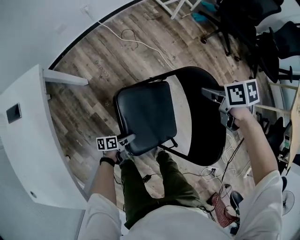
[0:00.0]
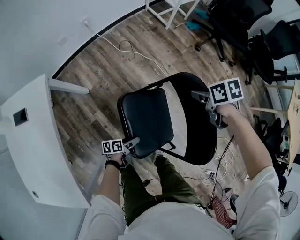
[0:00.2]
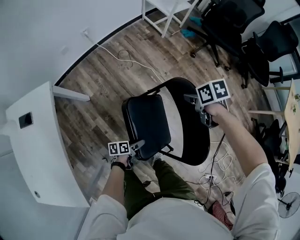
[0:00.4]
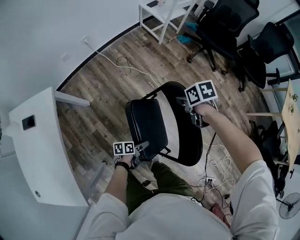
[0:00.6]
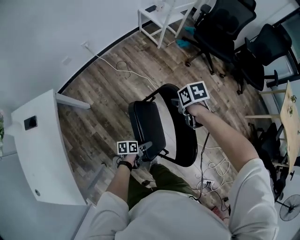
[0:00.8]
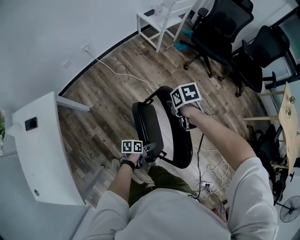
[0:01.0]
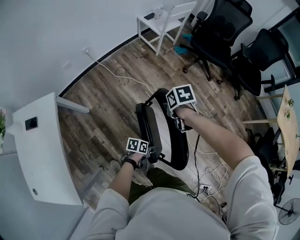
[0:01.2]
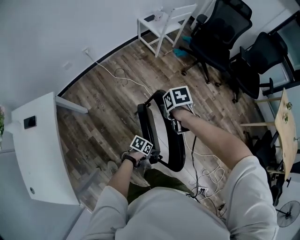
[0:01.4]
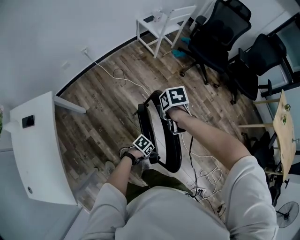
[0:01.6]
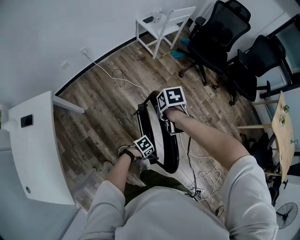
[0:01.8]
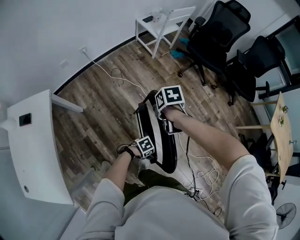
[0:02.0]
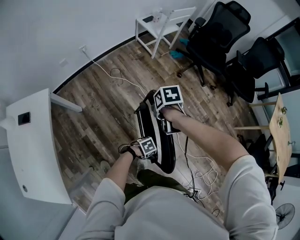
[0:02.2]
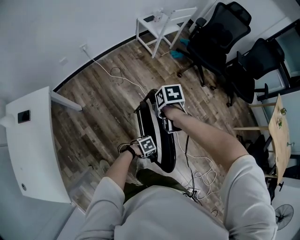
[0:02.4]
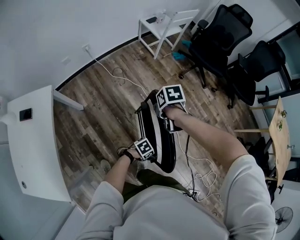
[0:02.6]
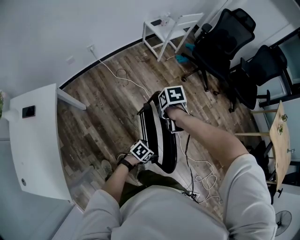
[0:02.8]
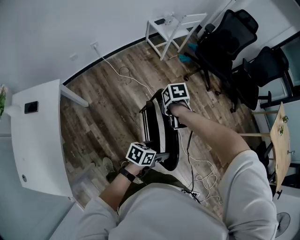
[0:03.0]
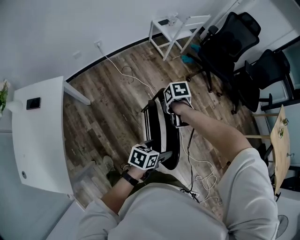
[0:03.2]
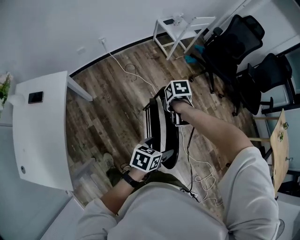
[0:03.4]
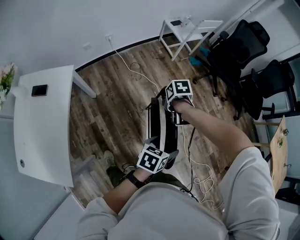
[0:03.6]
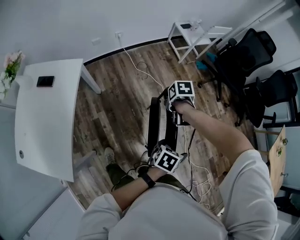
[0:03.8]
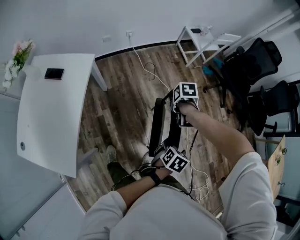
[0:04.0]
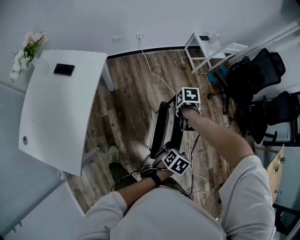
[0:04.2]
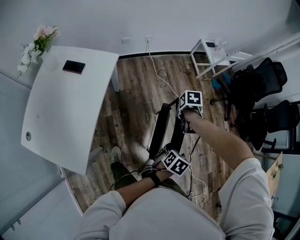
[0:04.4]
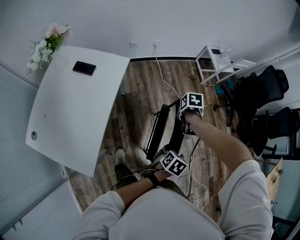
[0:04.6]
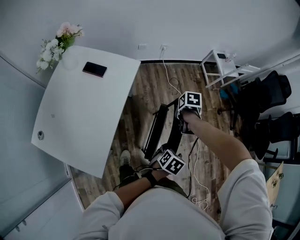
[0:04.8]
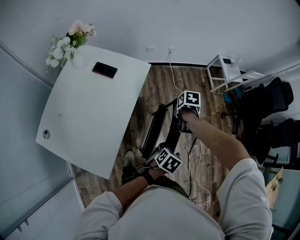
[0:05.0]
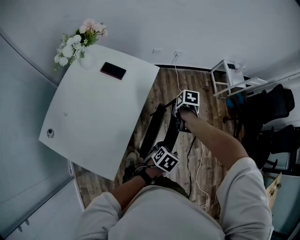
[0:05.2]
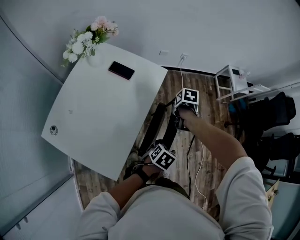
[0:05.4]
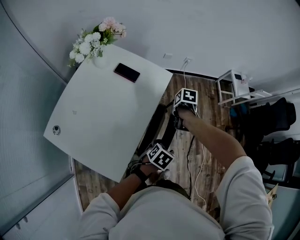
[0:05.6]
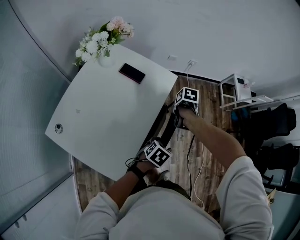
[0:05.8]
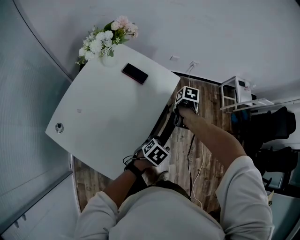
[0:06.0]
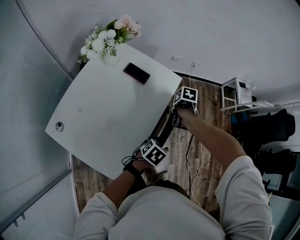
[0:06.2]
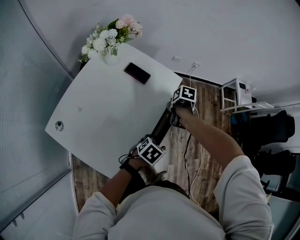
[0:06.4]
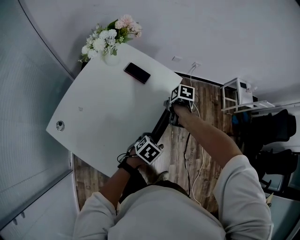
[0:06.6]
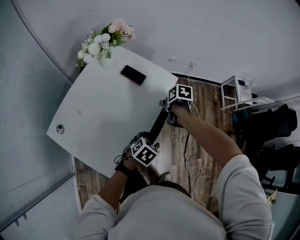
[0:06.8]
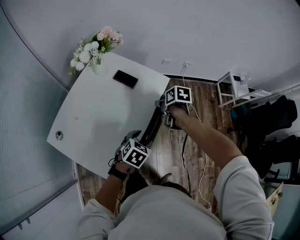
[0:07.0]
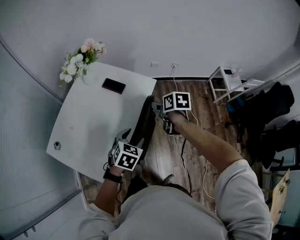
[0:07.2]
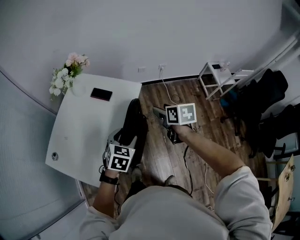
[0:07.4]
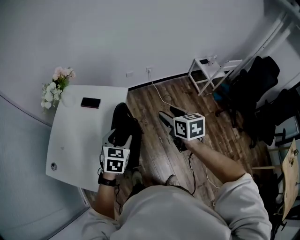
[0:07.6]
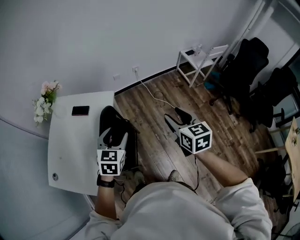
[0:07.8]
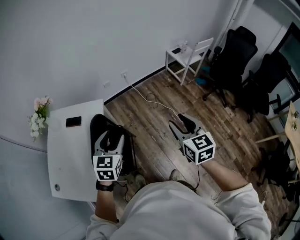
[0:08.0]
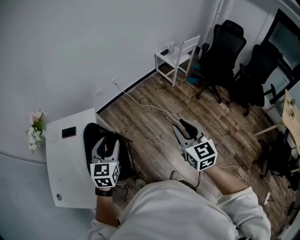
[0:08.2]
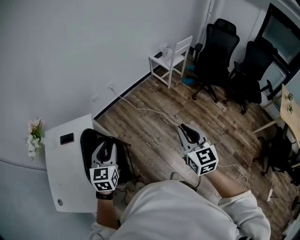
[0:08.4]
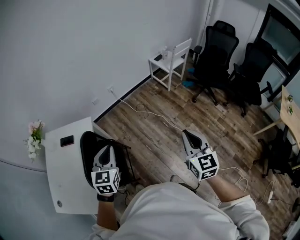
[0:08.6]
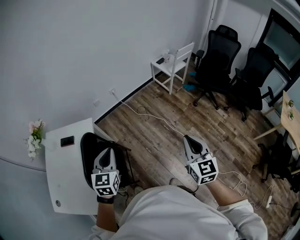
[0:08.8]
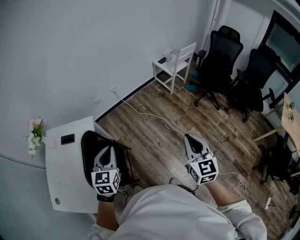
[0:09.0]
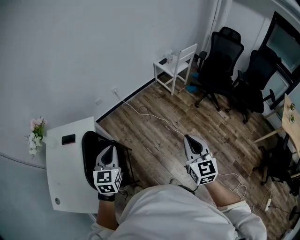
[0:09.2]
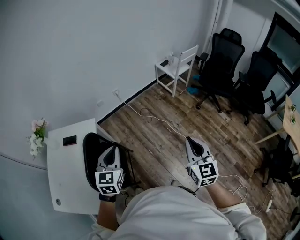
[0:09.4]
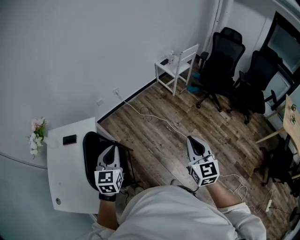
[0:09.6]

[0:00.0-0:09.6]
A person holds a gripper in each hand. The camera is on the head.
0:00.0 to 0:01.6: The left gripper changes place by about 35 cm, and swivels approximately 60 degrees, while the right gripper is displaced upward by some 10 cm.
0:01.6 to 0:03.2: The left gripper goes about 20 cm upward, and swivels roughly 40 degrees.
0:03.2 to 0:04.8: The left gripper moves about 30 cm, turns by about 30 degrees, and closes up. The right gripper changes place by approximately 35 cm.
0:04.8 to 0:06.4: The left gripper shifts by roughly 30 cm. The right gripper changes place by approximately 30 cm.
0:06.4 to 0:08.0: The right gripper shifts by approximately 60 cm, and tilts its fingers roughly 60 degrees upward. The left gripper travels upward by approximately 25 cm, and swivels some 40 degrees.
0:08.0 to 0:09.6: The right gripper goes approximately 15 cm to the right and backward, and closes. Meanwhile the left gripper shifts approximately 10 cm to the right, and closes its fingers.

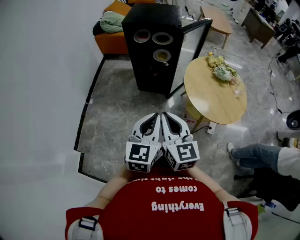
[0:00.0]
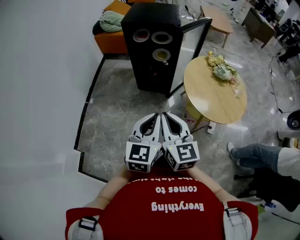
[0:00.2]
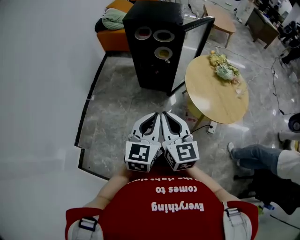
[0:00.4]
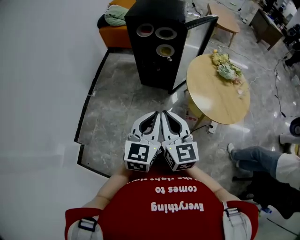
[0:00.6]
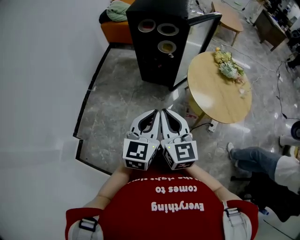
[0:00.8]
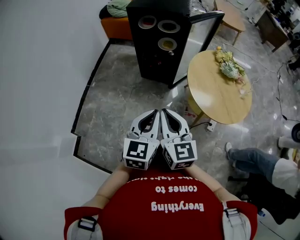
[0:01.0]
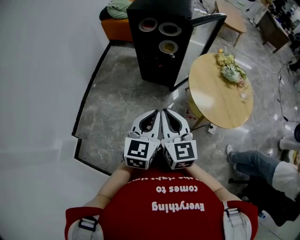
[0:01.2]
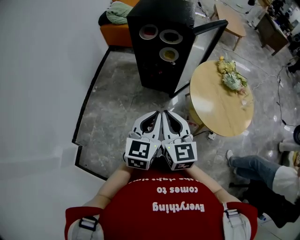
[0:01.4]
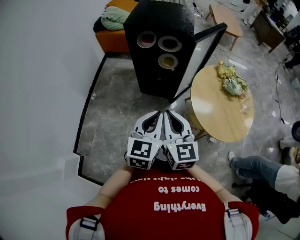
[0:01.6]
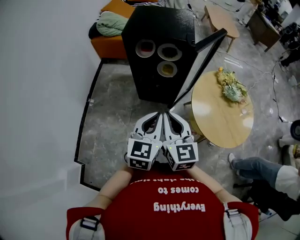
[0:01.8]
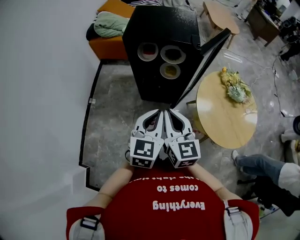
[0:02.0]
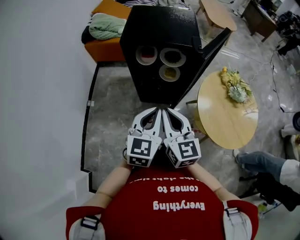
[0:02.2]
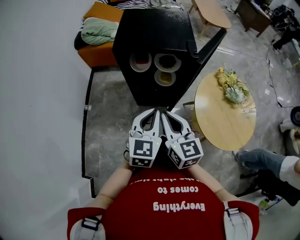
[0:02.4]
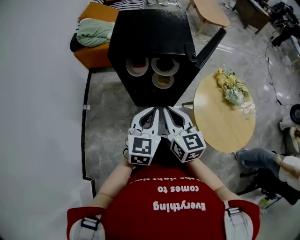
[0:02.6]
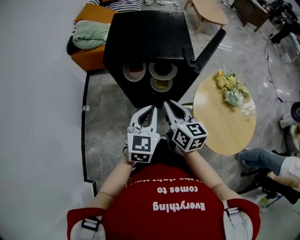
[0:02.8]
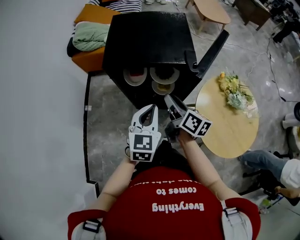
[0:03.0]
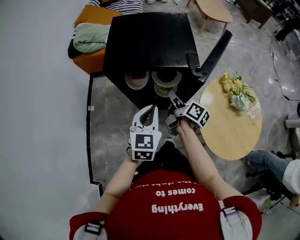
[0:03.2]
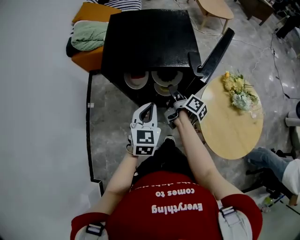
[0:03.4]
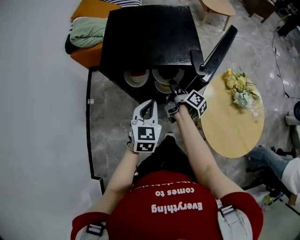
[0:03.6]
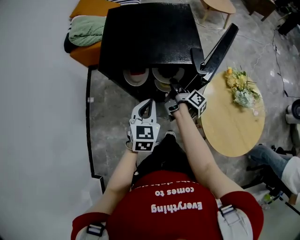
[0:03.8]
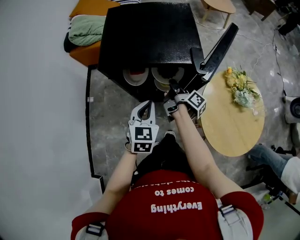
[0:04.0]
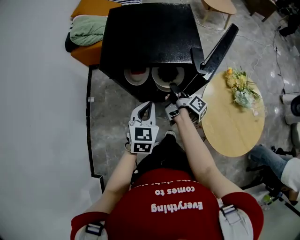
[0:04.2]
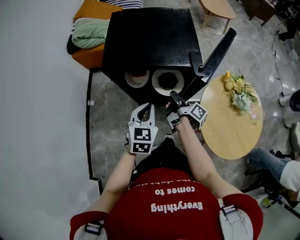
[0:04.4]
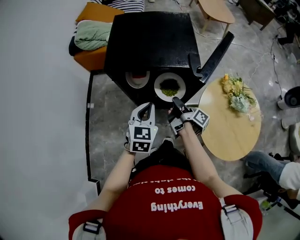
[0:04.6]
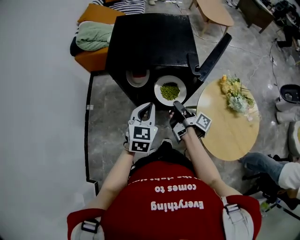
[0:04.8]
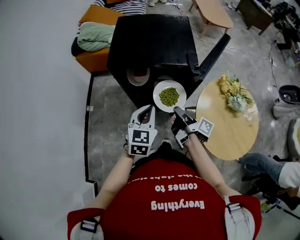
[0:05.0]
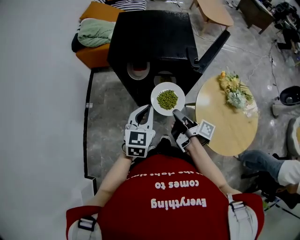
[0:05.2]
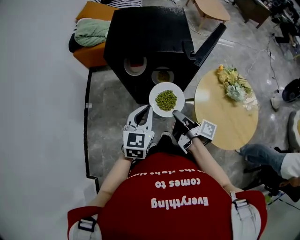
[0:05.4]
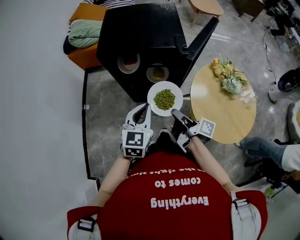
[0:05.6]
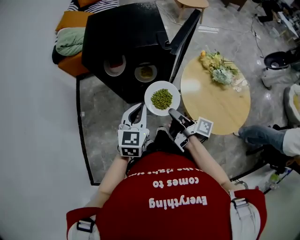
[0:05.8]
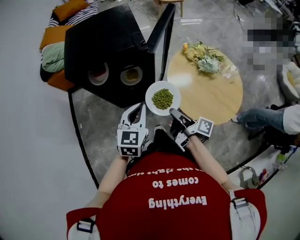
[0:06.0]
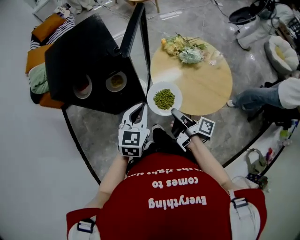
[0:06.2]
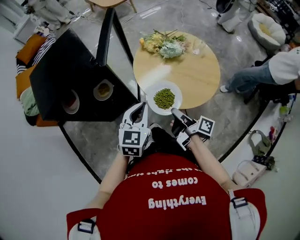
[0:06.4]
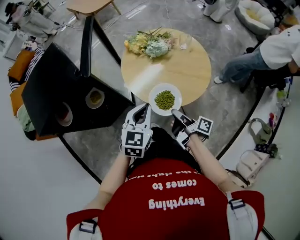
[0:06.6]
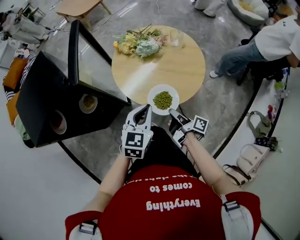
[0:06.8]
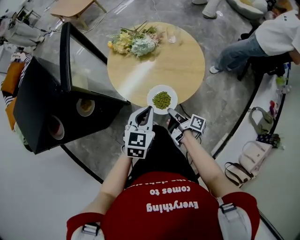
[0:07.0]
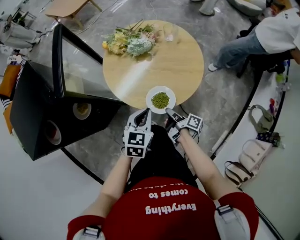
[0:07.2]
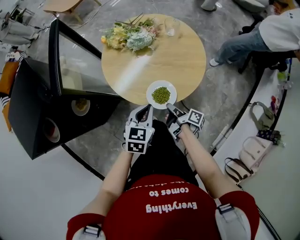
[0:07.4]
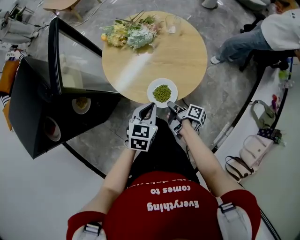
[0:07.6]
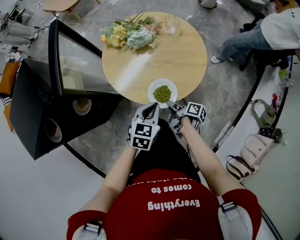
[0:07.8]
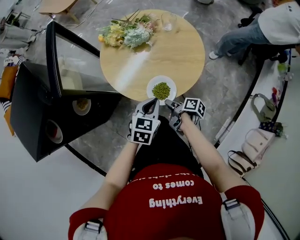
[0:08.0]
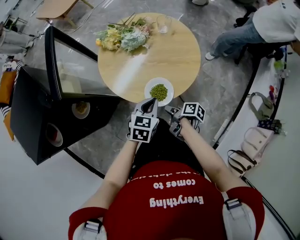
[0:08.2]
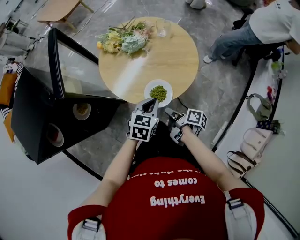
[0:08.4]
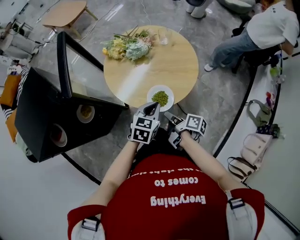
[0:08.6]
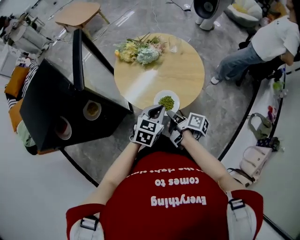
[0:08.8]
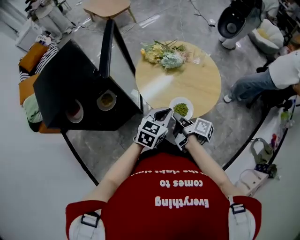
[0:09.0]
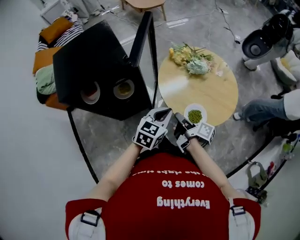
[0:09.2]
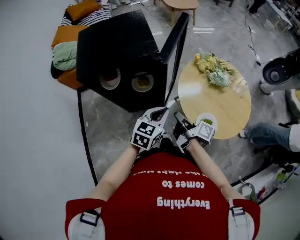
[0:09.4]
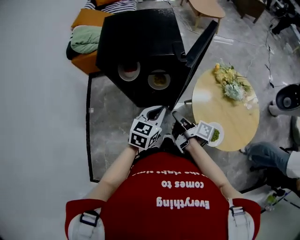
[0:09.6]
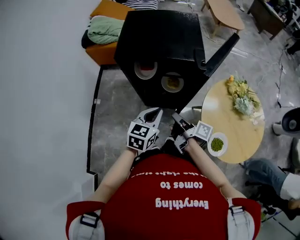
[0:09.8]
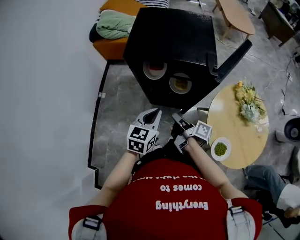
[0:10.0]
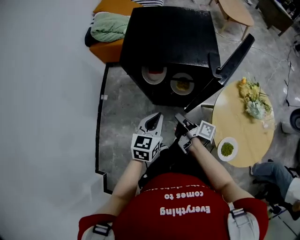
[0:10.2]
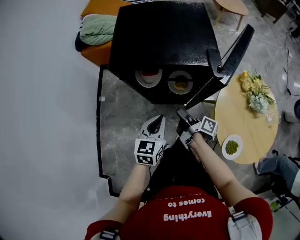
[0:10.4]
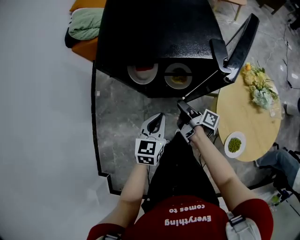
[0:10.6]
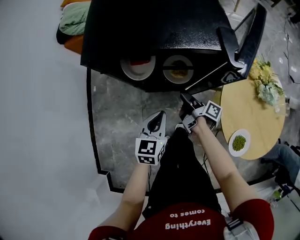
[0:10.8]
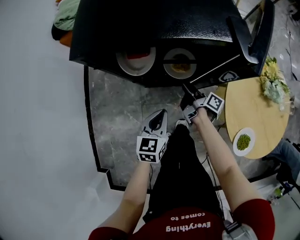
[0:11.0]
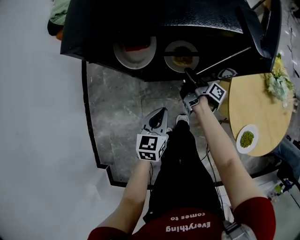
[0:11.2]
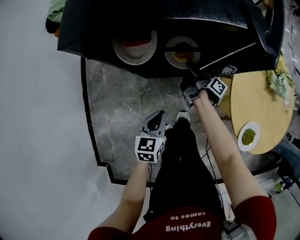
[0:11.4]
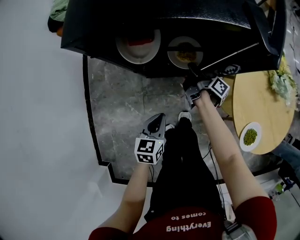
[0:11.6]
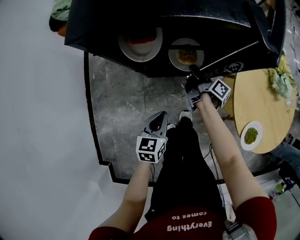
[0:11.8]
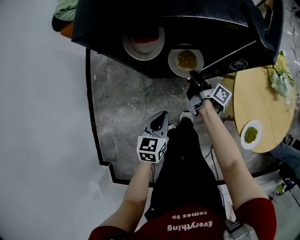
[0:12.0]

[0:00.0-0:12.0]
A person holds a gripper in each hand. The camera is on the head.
0:00.0 to 0:01.6: The left gripper ends up approximately 15 cm from where it was.
0:01.6 to 0:03.0: The left gripper changes place by some 30 cm.
0:03.0 to 0:04.4: The left gripper heads downward, covering about 5 cm.
0:04.4 to 0:06.0: The left gripper ends up roughly 15 cm from where it was.
0:06.0 to 0:07.6: The left gripper ends up some 30 cm from where it was, and swivels approximately 40 degrees.
0:07.6 to 0:09.0: The left gripper travels upward by approximately 10 cm.
0:09.0 to 0:10.4: The left gripper shifts by some 40 cm, and rotates about 60 degrees.
0:10.4 to 0:12.0: The left gripper goes about 20 cm downward.

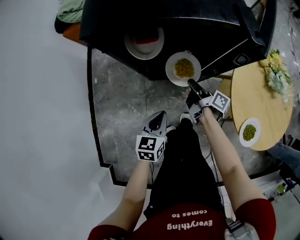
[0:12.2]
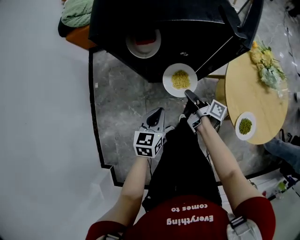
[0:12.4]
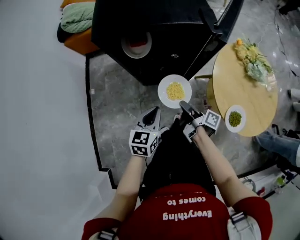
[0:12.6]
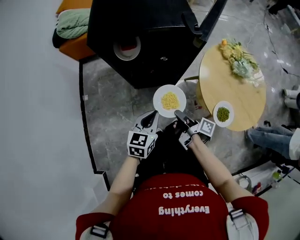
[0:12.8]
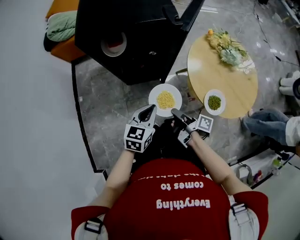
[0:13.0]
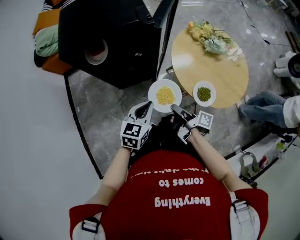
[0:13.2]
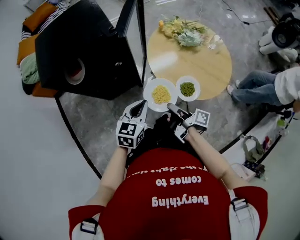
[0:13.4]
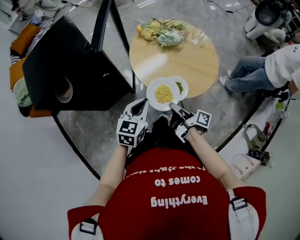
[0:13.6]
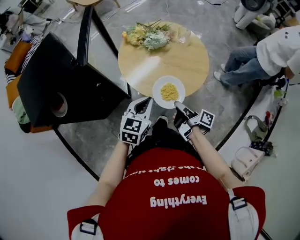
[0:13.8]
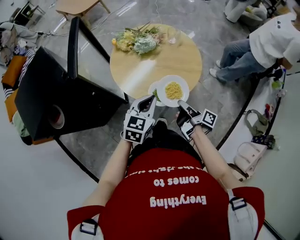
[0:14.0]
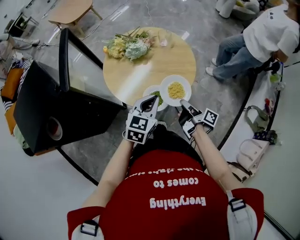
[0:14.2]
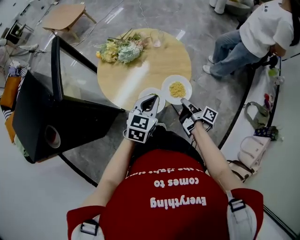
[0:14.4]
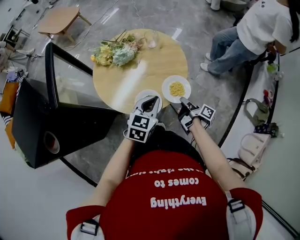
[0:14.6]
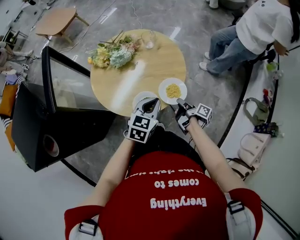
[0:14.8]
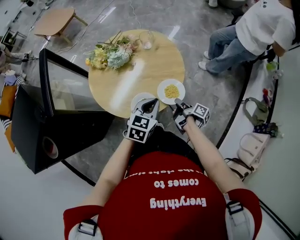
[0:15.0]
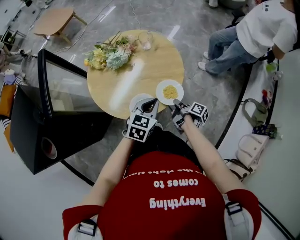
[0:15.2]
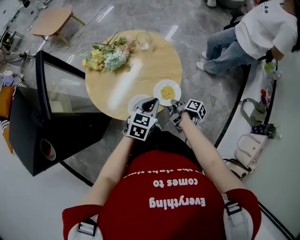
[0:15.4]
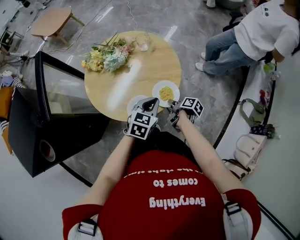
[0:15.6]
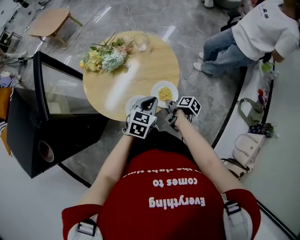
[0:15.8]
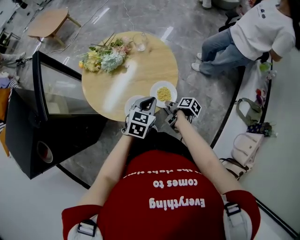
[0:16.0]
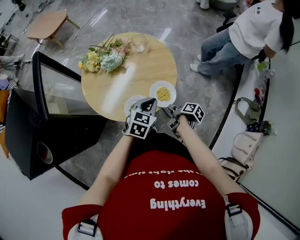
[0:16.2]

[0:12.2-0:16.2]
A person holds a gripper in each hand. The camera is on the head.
0:12.2 to 0:13.6: The left gripper ends up about 35 cm from where it was, and swivels some 40 degrees.
0:13.6 to 0:14.8: The left gripper moves some 25 cm, and changes its angle by approximately 30 degrees.
